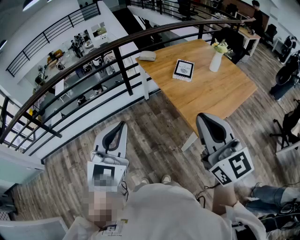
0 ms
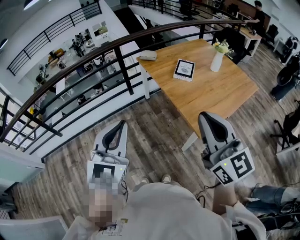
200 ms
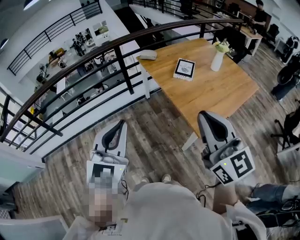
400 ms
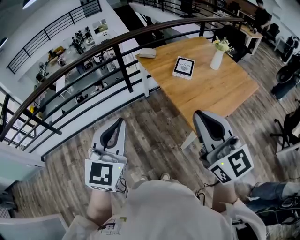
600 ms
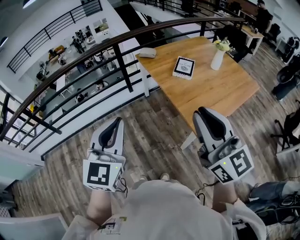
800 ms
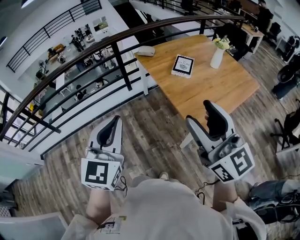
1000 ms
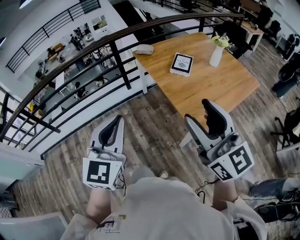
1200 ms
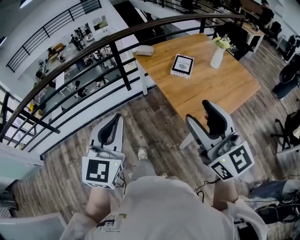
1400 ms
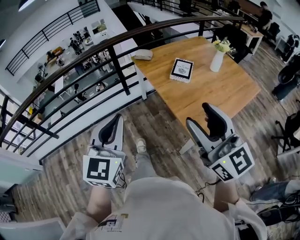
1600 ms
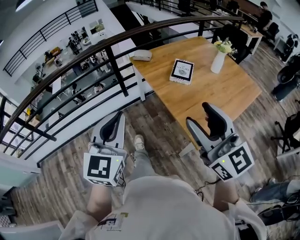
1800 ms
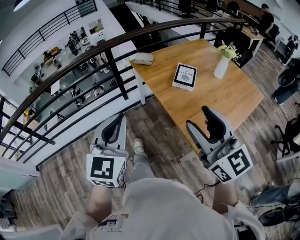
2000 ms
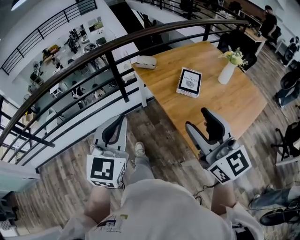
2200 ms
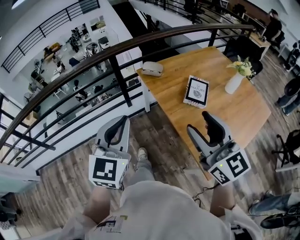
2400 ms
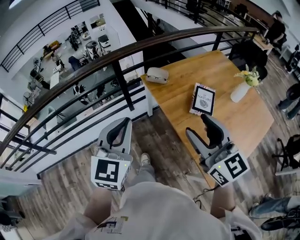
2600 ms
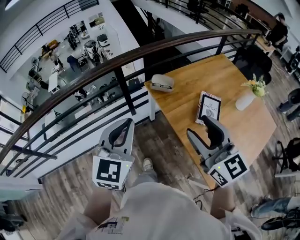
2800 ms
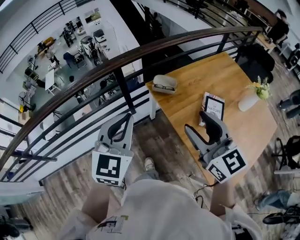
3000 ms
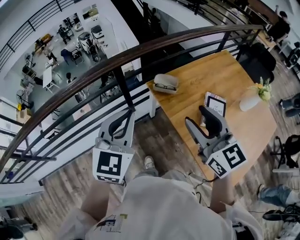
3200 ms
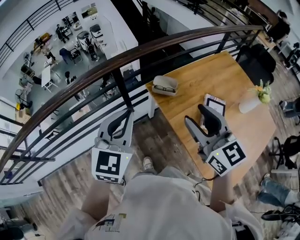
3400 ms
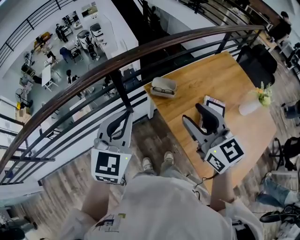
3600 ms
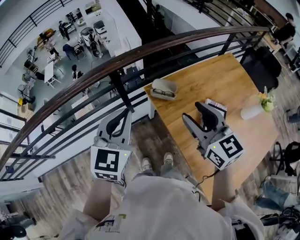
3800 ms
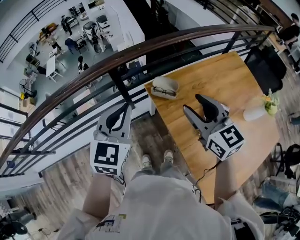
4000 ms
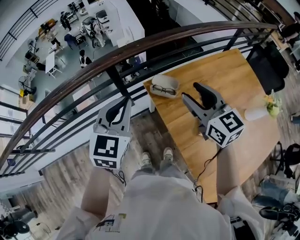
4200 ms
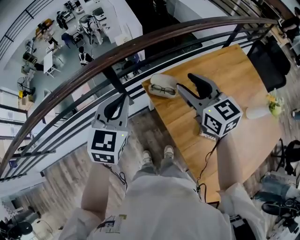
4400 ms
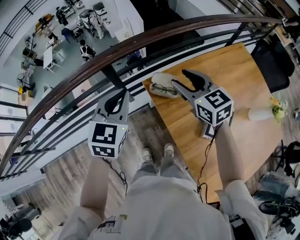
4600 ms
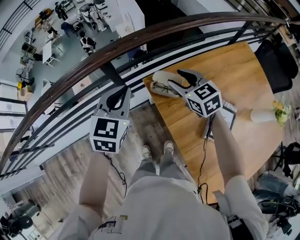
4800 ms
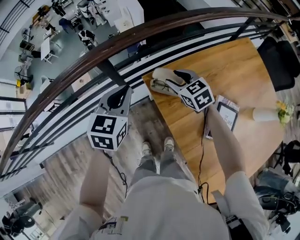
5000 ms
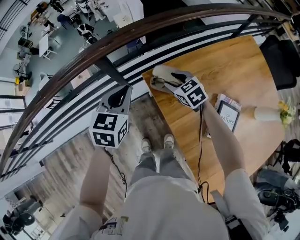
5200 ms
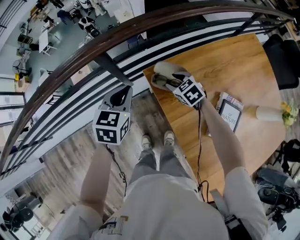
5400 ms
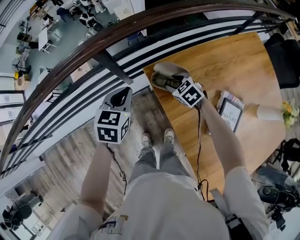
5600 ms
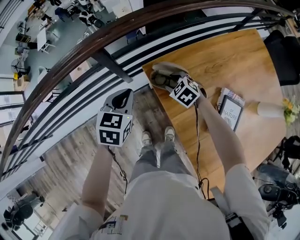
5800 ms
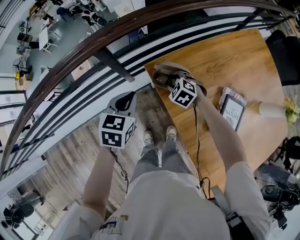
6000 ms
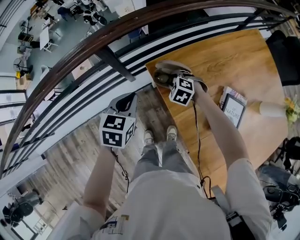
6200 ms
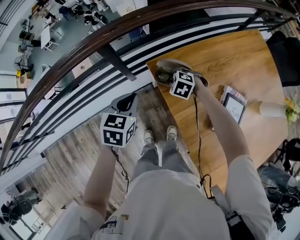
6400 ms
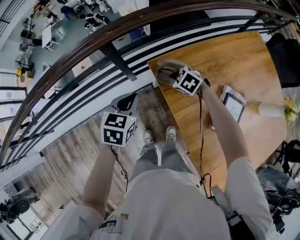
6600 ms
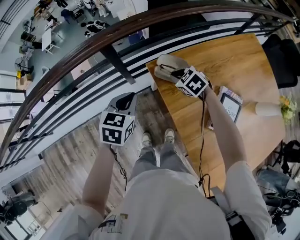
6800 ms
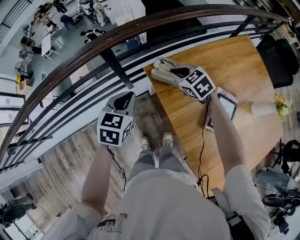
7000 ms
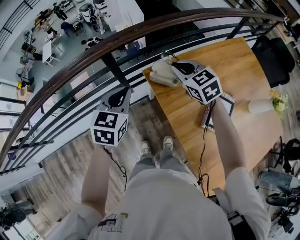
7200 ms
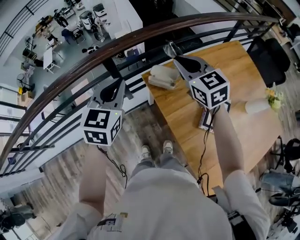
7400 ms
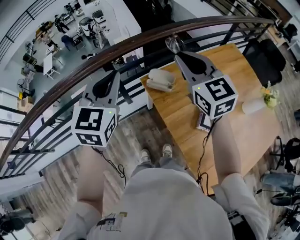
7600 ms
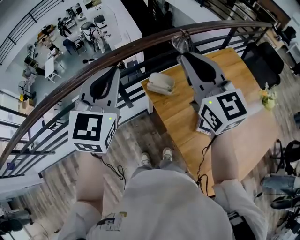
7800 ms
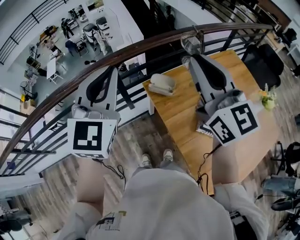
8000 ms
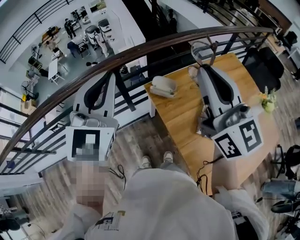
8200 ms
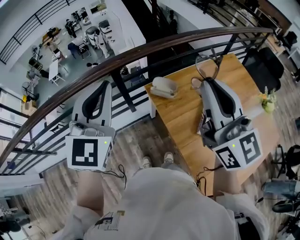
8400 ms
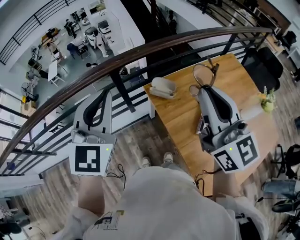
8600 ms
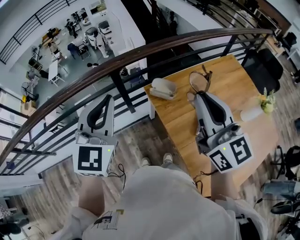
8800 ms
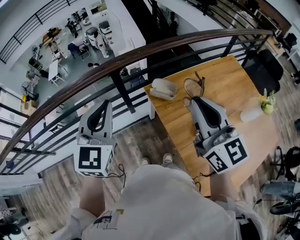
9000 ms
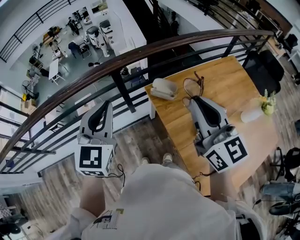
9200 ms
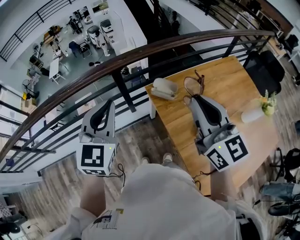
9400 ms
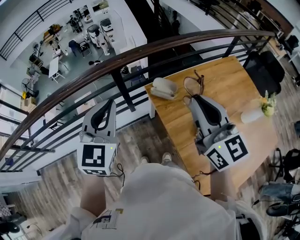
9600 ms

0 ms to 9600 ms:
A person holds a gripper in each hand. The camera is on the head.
0 ms to 1600 ms: The left gripper goes some 10 cm forward, while the right gripper goes about 10 cm forward and to the right, and opens its fingers.
1600 ms to 3200 ms: Both grippers are carried forward, roughly 60 cm.
3200 ms to 4800 ms: Both grippers travel together forward and downward, about 35 cm. The right gripper swivels roughly 30 degrees.
4800 ms to 6400 ms: The left gripper moves downward, some 15 cm, and rotates approximately 20 degrees. Meanwhile the right gripper is displaced downward by approximately 25 cm, angles its fingers downward, by some 40 degrees, and closes up.
6400 ms to 8000 ms: The grippers both shift upward by some 50 cm. The right gripper points its fingers roughly 80 degrees further upward, while the left gripper tips its fingers upward by roughly 40 degrees.
8000 ms to 9600 ms: The left gripper heads downward, covering some 10 cm. The right gripper shifts approximately 10 cm downward and backward.

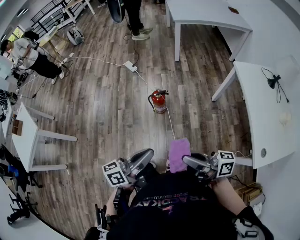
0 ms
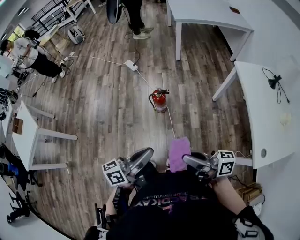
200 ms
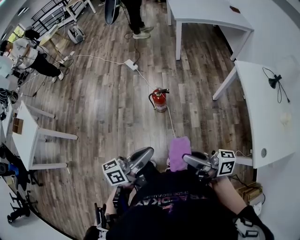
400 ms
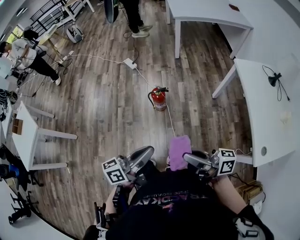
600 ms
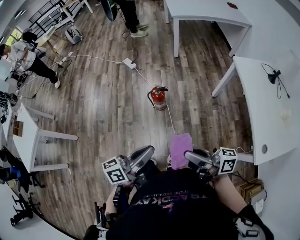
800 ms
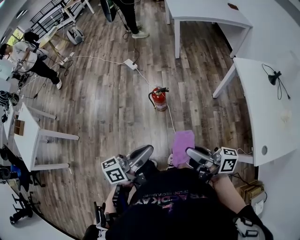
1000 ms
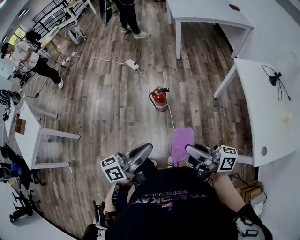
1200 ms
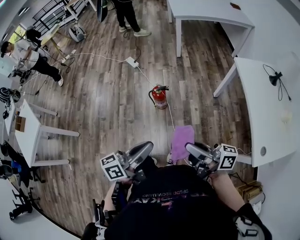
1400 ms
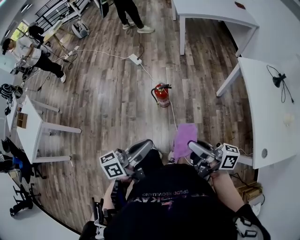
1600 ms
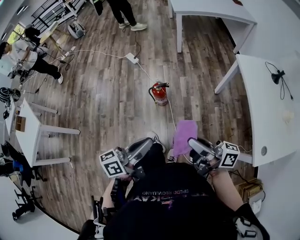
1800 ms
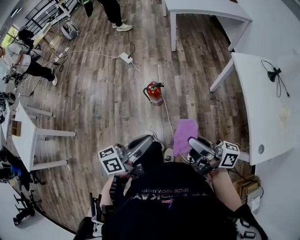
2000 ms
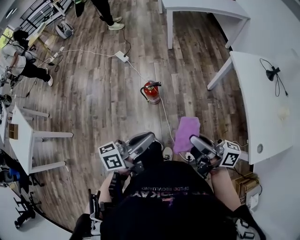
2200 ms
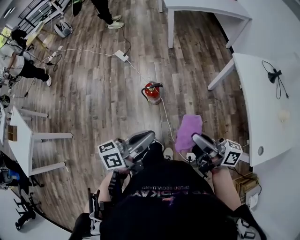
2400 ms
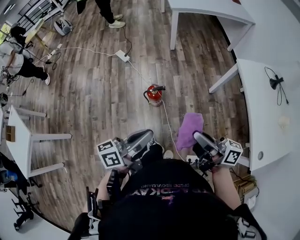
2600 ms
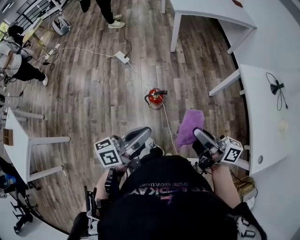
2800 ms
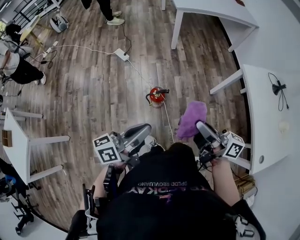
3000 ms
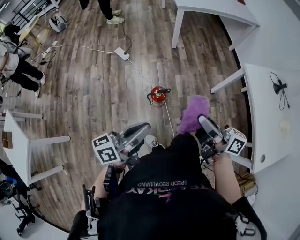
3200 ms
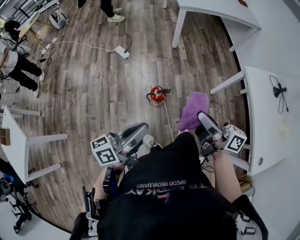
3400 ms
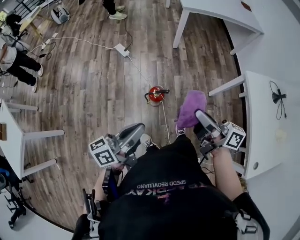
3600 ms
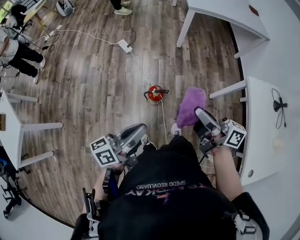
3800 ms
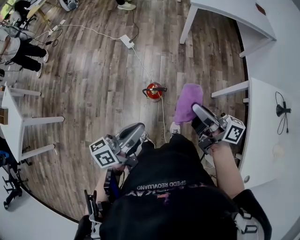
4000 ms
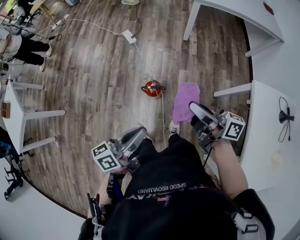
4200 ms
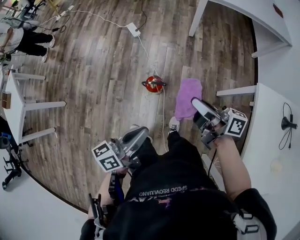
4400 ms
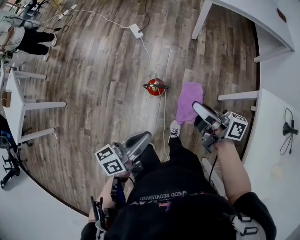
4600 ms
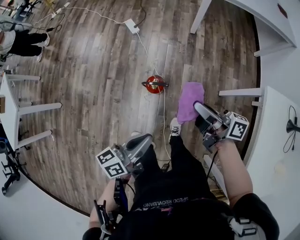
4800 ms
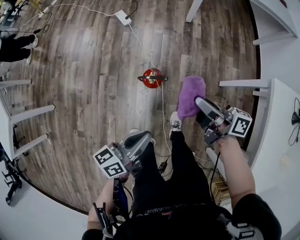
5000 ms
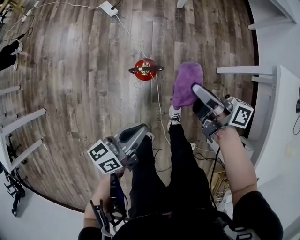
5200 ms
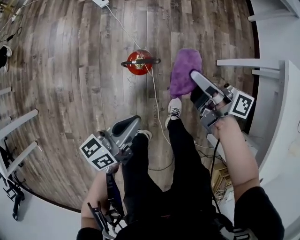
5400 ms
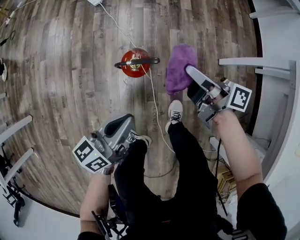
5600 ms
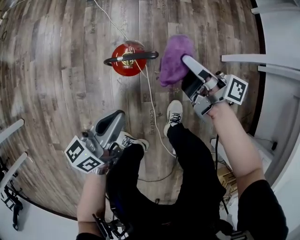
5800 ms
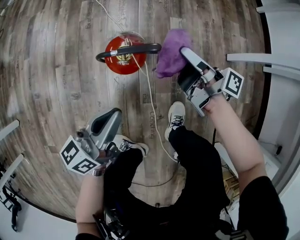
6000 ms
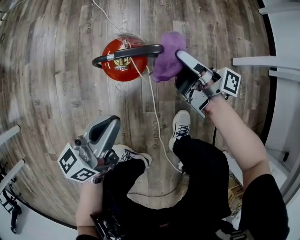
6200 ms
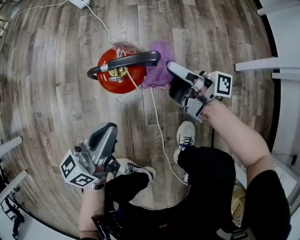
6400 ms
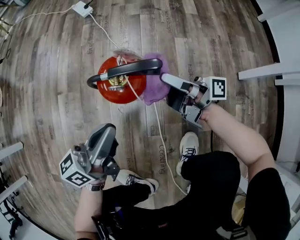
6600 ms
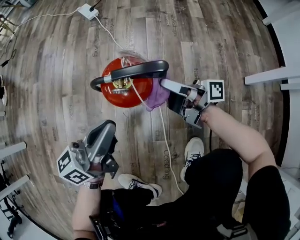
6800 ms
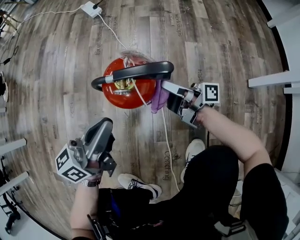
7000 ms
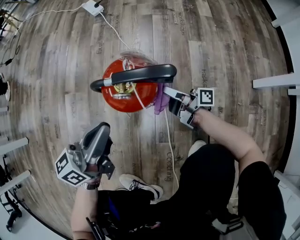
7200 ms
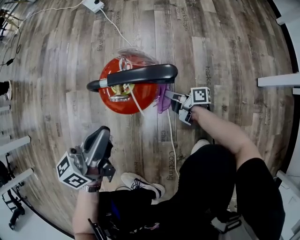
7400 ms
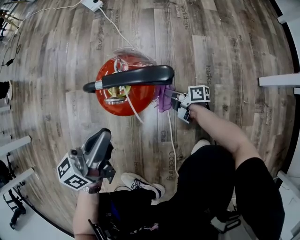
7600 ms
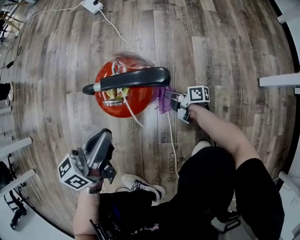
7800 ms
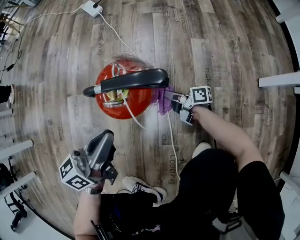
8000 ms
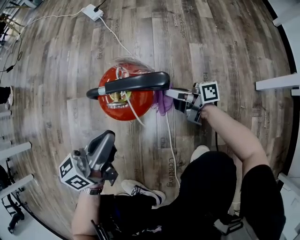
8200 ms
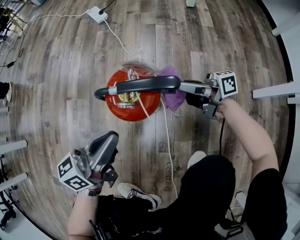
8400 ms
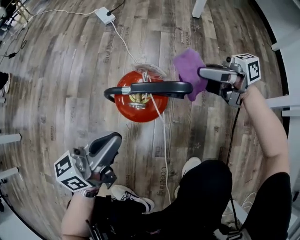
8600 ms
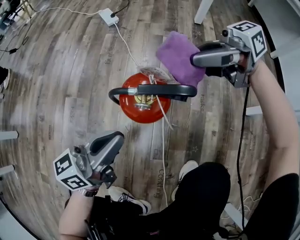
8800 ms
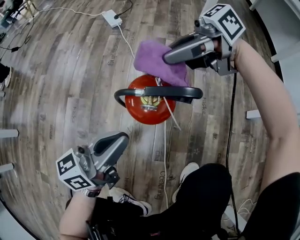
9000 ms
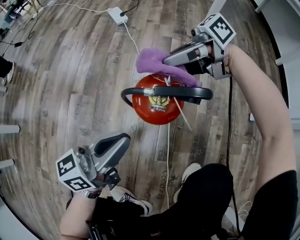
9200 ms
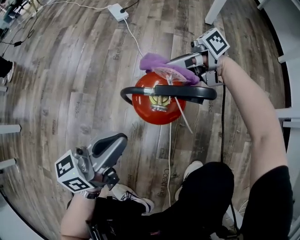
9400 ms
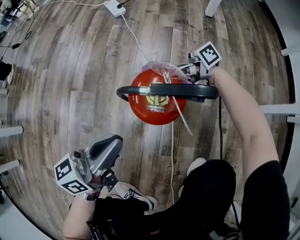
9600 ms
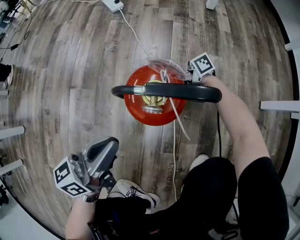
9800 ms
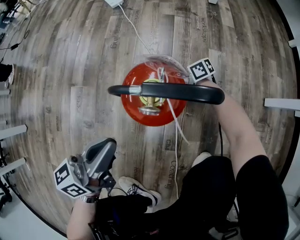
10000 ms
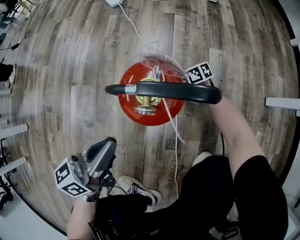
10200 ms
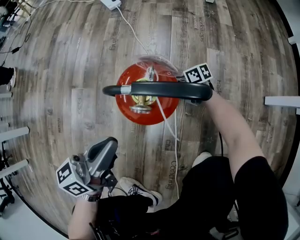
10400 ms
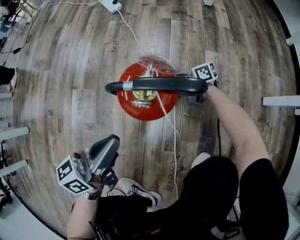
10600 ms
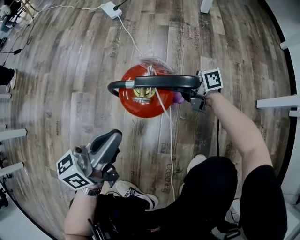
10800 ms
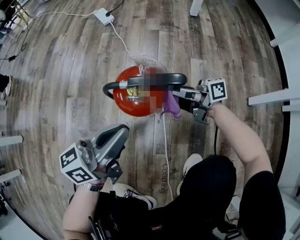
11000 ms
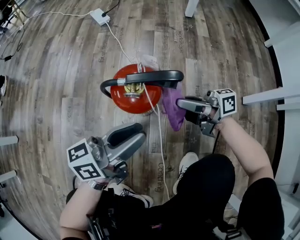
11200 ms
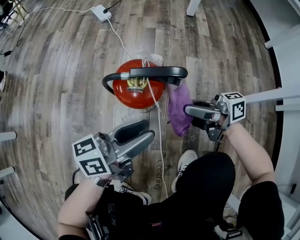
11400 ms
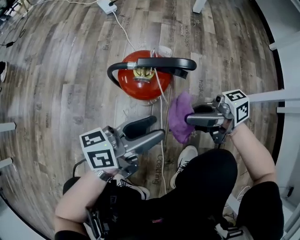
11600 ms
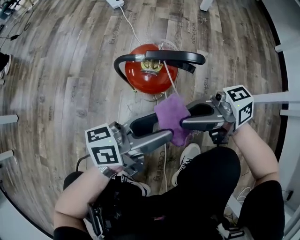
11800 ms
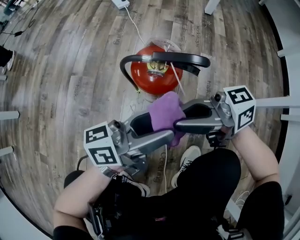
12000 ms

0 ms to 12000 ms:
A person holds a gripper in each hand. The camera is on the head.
0 ms to 1600 ms: The right gripper moves approximately 5 cm.
1600 ms to 3000 ms: The right gripper heads forward, covering some 20 cm. Meanwhile the left gripper is displaced forward and to the left by some 20 cm.
3000 ms to 4400 ms: The left gripper travels to the right and downward by roughly 10 cm, and rotates roughly 20 degrees, while the right gripper goes about 20 cm forward, to the right and downward, and turns by about 20 degrees.
4400 ms to 6000 ms: The two grippers go some 50 cm downward. The right gripper swivels roughly 30 degrees.
6000 ms to 7600 ms: The left gripper travels downward by about 15 cm, while the right gripper moves downward, some 40 cm, and turns by some 30 degrees.
7600 ms to 9000 ms: The right gripper shifts about 40 cm upward, and rotates roughly 70 degrees.
9000 ms to 10400 ms: The right gripper shifts approximately 40 cm downward, and turns by approximately 50 degrees. Meanwhile the left gripper shifts by roughly 5 cm.
10400 ms to 12000 ms: The right gripper goes roughly 40 cm upward, and angles its fingers upward, by approximately 40 degrees. Meanwhile the left gripper moves roughly 15 cm, swivels about 20 degrees, and opens up.

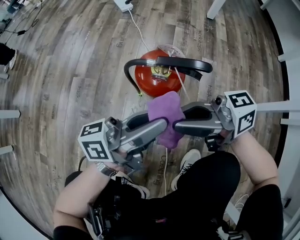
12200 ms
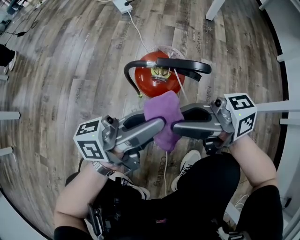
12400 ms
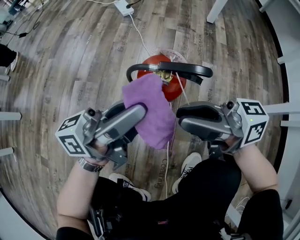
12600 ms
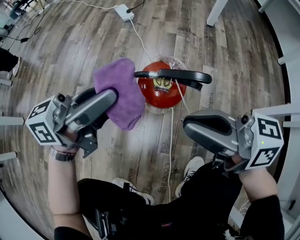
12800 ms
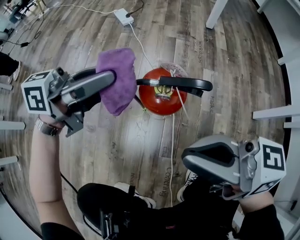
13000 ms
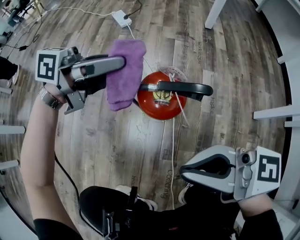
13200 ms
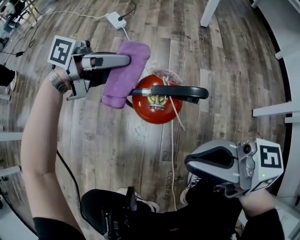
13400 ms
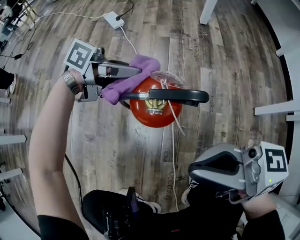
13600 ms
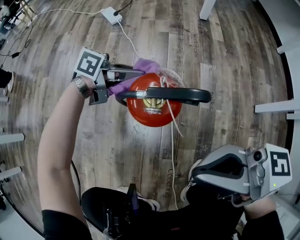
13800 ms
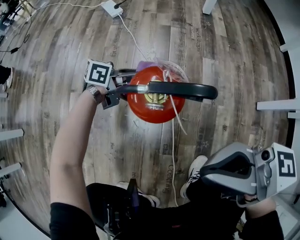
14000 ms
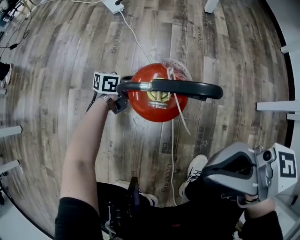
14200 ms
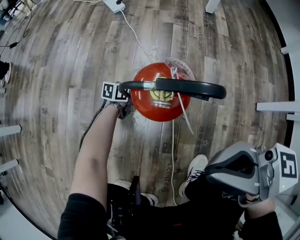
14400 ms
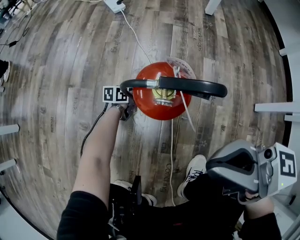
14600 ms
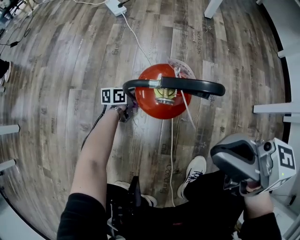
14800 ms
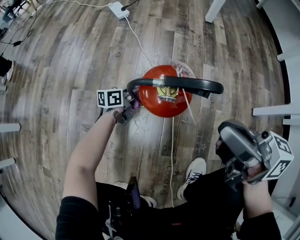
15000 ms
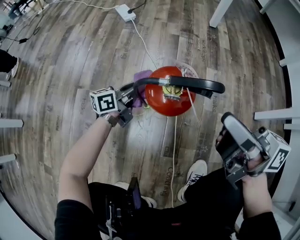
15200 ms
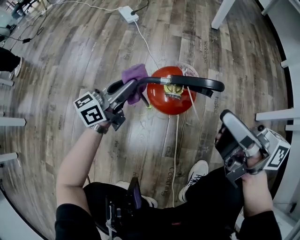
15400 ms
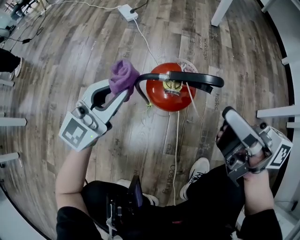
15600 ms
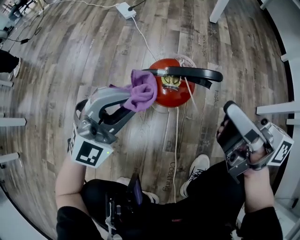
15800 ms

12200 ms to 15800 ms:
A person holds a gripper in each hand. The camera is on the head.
12200 ms to 14000 ms: The left gripper moves downward, some 20 cm, and rotates some 40 degrees. The right gripper travels upward by about 10 cm, and turns by about 20 degrees.
14000 ms to 15800 ms: The right gripper moves about 5 cm, and rotates roughly 20 degrees, while the left gripper shifts roughly 20 cm upward, and rotates around the line of its fingers by about 100 degrees, clockwise from behind.
